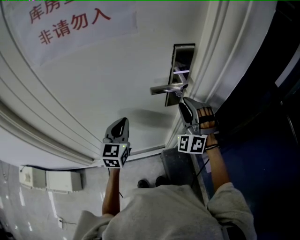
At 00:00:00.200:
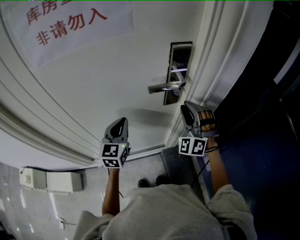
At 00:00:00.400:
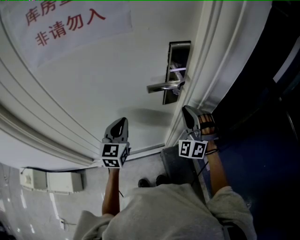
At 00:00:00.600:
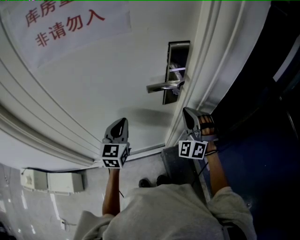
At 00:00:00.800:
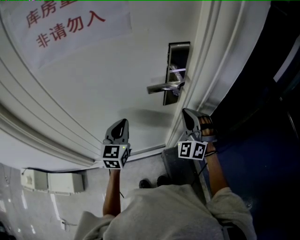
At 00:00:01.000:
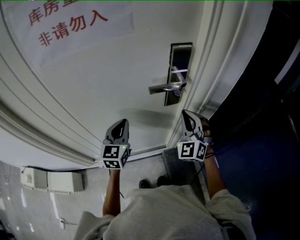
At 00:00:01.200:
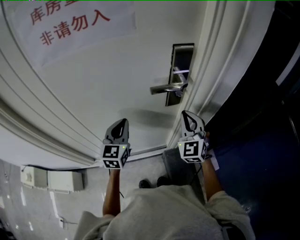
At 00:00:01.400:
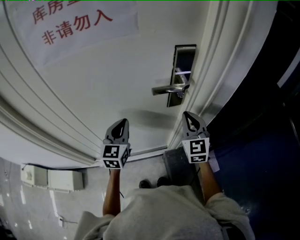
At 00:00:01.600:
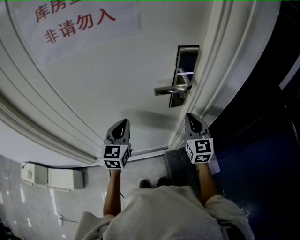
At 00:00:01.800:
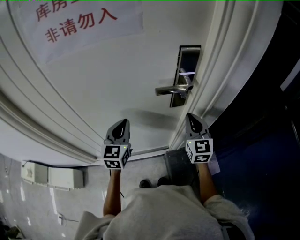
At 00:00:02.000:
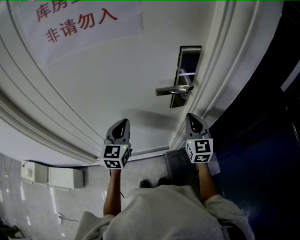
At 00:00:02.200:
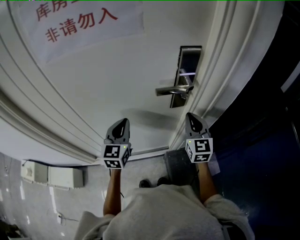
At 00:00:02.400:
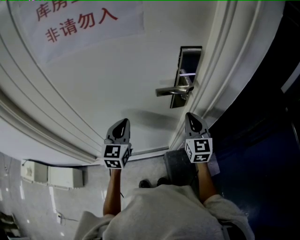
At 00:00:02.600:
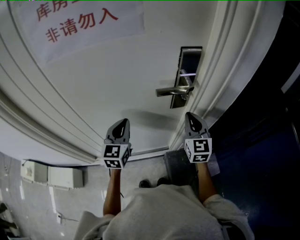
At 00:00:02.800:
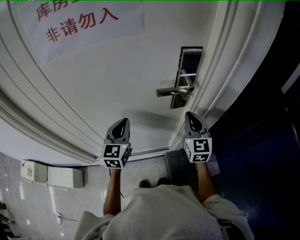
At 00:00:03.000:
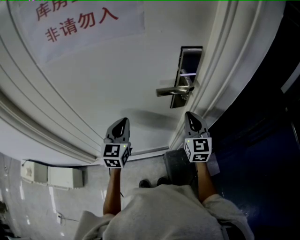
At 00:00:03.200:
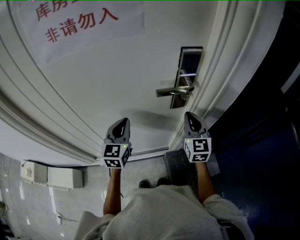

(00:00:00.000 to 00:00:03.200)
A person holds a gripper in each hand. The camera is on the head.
00:00:00.000 - 00:00:01.600: The right gripper twists some 70 degrees clockwise, seen from behind, and closes its fingers.
00:00:01.600 - 00:00:03.200: The grippers move only a little.

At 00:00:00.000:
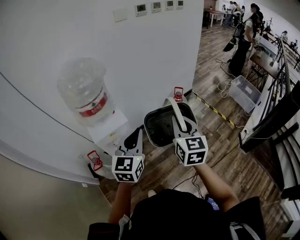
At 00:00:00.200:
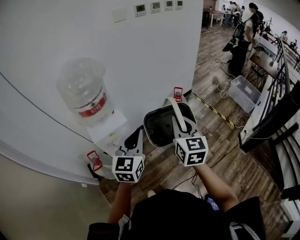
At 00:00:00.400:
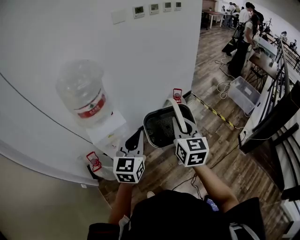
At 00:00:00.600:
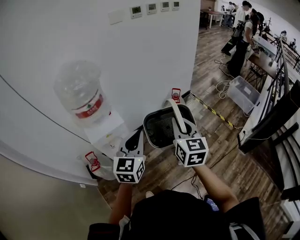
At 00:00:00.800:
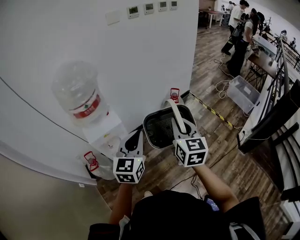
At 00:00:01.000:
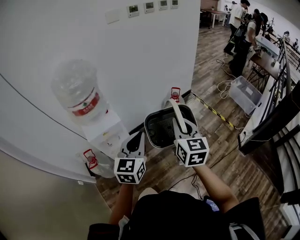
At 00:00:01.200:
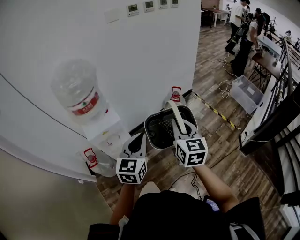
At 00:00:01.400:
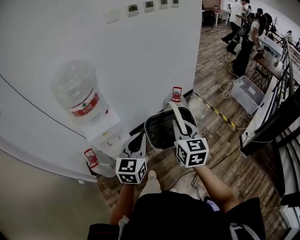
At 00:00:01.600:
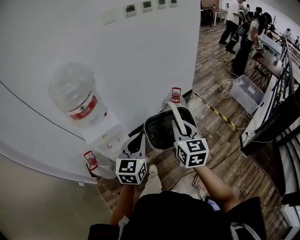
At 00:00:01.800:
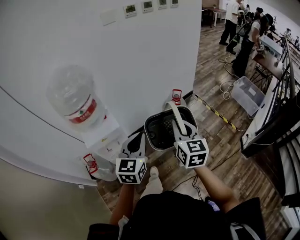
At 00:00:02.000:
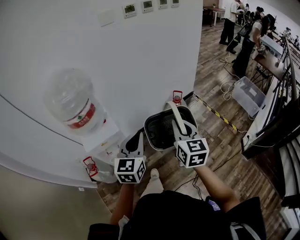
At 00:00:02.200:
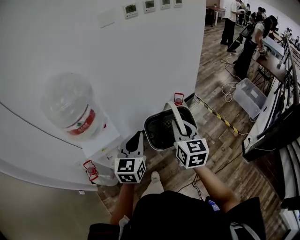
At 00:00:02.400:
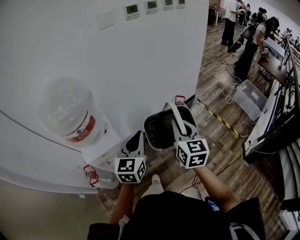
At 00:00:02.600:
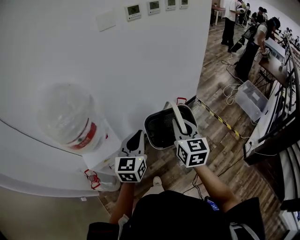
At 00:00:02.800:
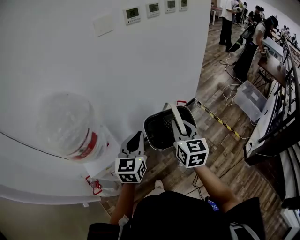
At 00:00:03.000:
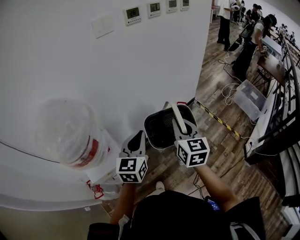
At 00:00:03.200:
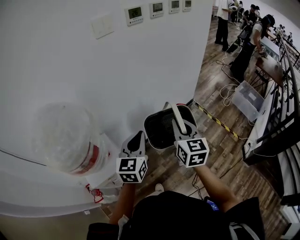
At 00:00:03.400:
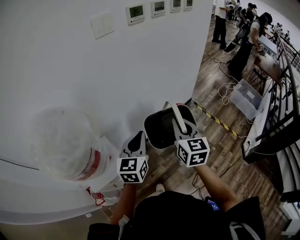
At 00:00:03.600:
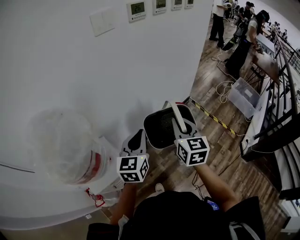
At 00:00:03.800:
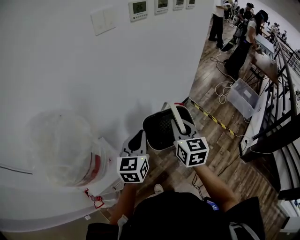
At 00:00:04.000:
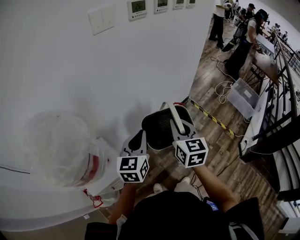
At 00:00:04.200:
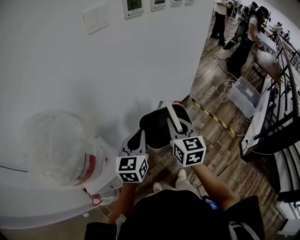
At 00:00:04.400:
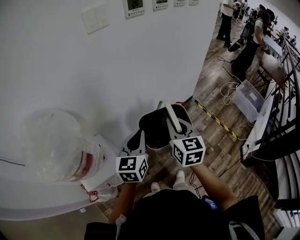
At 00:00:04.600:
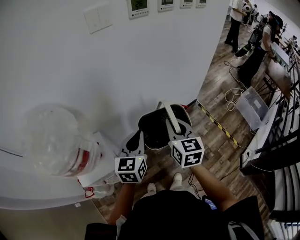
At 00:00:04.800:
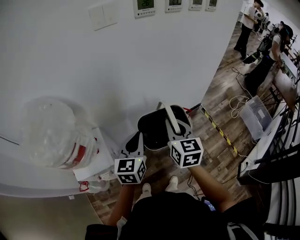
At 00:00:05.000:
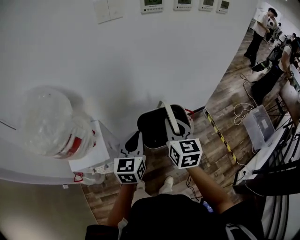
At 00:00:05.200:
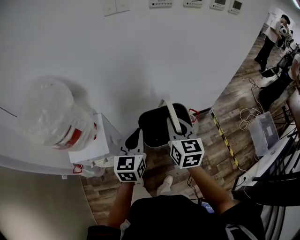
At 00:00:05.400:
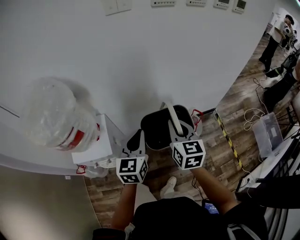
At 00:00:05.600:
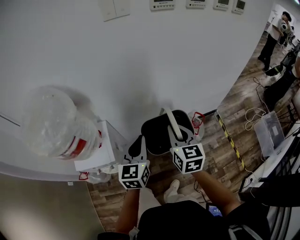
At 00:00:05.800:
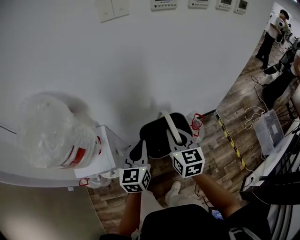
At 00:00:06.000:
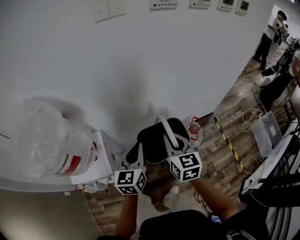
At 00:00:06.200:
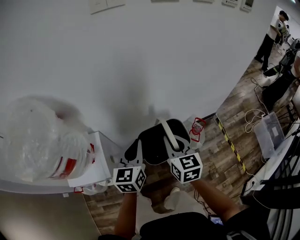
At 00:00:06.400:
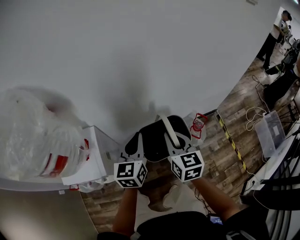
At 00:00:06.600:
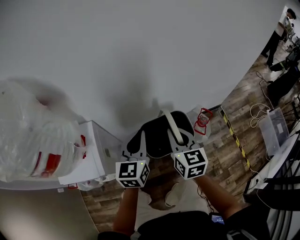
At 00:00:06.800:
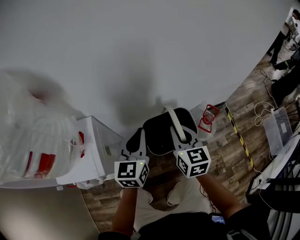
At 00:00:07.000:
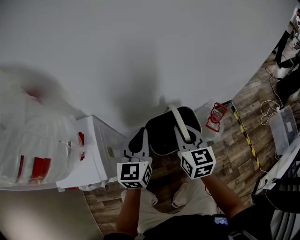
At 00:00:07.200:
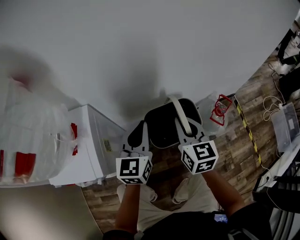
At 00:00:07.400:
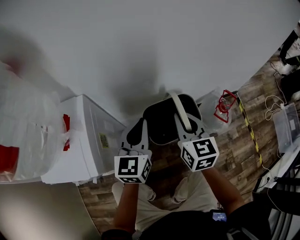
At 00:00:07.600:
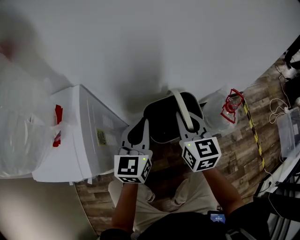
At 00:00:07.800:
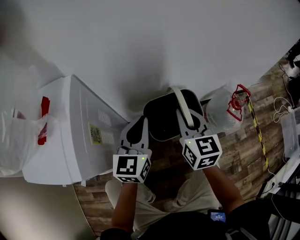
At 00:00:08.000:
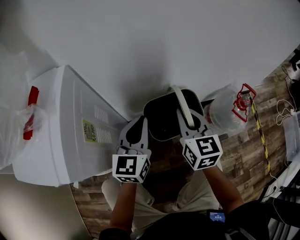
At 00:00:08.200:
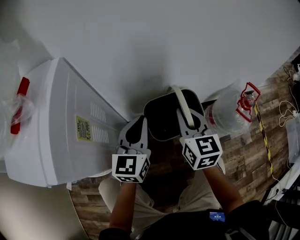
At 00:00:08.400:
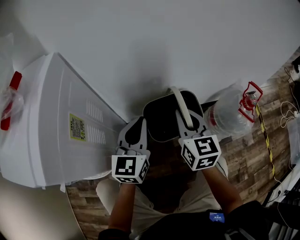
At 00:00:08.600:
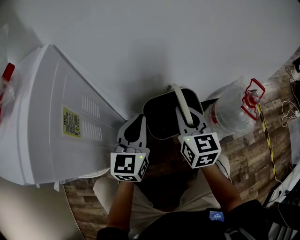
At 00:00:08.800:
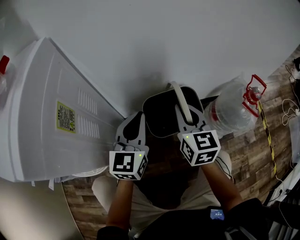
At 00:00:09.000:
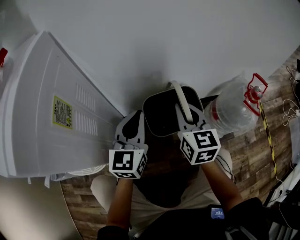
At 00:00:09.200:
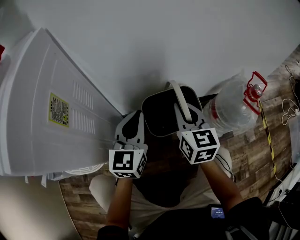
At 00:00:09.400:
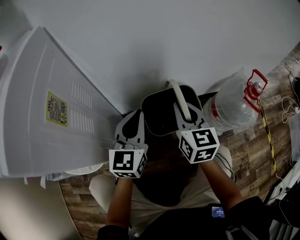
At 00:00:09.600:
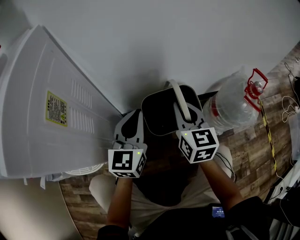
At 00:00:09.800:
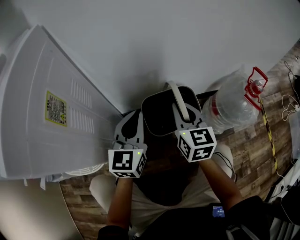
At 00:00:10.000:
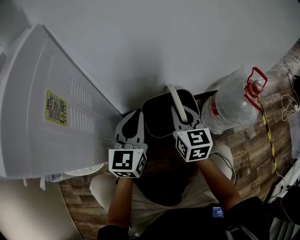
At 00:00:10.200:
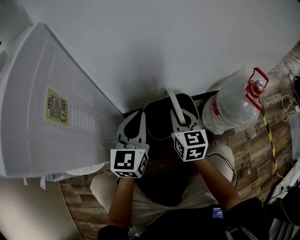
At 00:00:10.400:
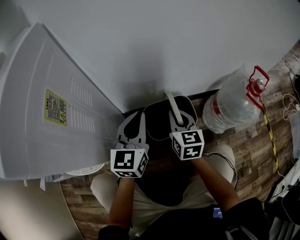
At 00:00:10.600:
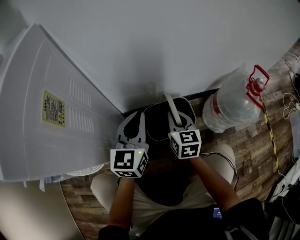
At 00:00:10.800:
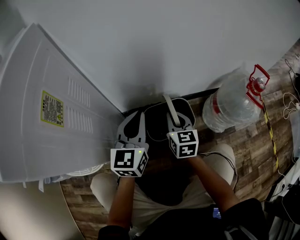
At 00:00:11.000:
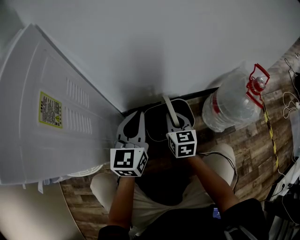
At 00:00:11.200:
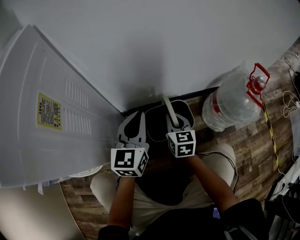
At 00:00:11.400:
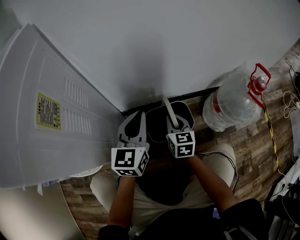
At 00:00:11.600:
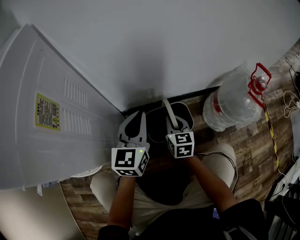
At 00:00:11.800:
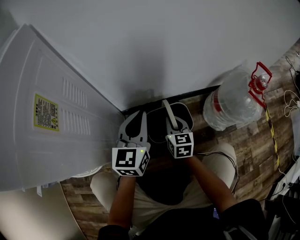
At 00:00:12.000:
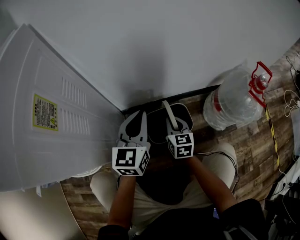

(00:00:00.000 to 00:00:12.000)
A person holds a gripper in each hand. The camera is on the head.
00:00:00.000 - 00:00:01.600: Both grippers move to the right, roughly 10 cm.
00:00:01.600 - 00:00:03.000: Both grippers move forward, approximately 25 cm.
00:00:03.000 - 00:00:04.400: Both grippers travel together forward, roughly 10 cm.
00:00:04.400 - 00:00:06.000: The left gripper travels downward by about 5 cm, and turns by some 20 degrees. The right gripper shifts roughly 10 cm downward and forward, and rotates about 20 degrees.
00:00:06.000 - 00:00:07.600: The grippers both shift downward by about 30 cm.
00:00:07.600 - 00:00:09.000: The two grippers go roughly 20 cm downward.
00:00:09.000 - 00:00:10.400: The right gripper is displaced downward by about 10 cm.
00:00:10.400 - 00:00:12.000: The right gripper heads downward, covering approximately 10 cm.

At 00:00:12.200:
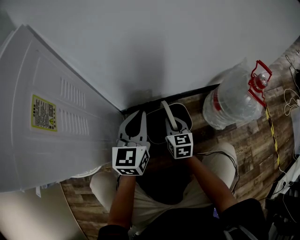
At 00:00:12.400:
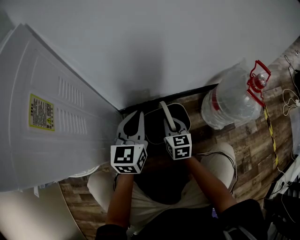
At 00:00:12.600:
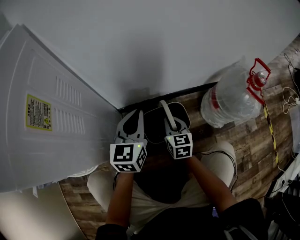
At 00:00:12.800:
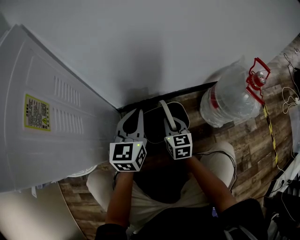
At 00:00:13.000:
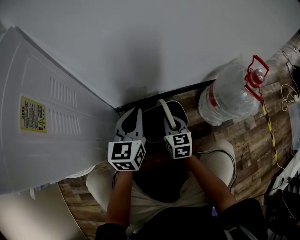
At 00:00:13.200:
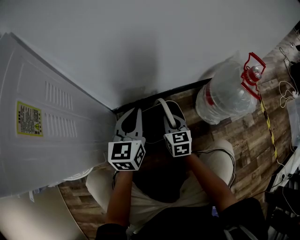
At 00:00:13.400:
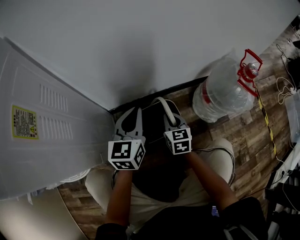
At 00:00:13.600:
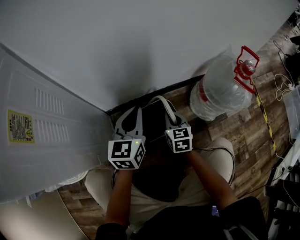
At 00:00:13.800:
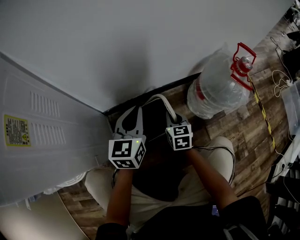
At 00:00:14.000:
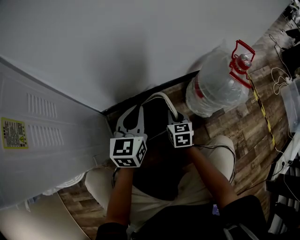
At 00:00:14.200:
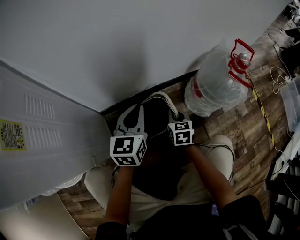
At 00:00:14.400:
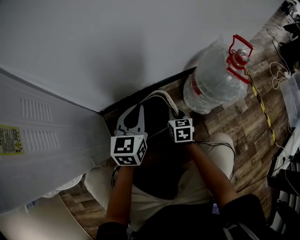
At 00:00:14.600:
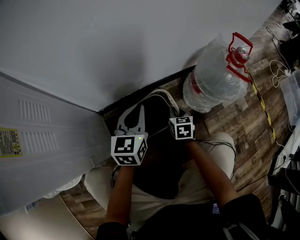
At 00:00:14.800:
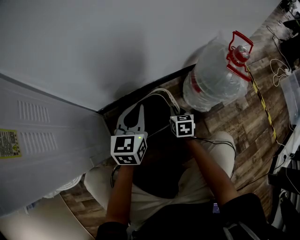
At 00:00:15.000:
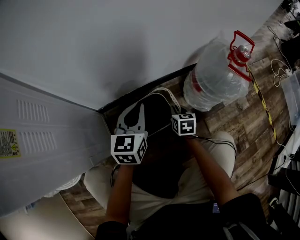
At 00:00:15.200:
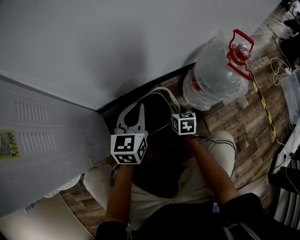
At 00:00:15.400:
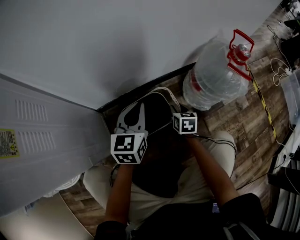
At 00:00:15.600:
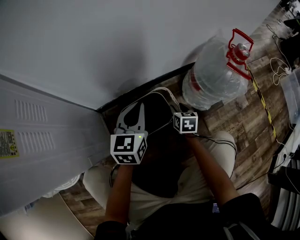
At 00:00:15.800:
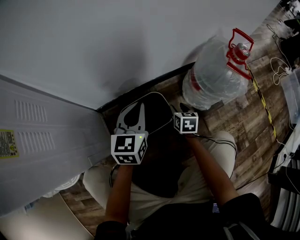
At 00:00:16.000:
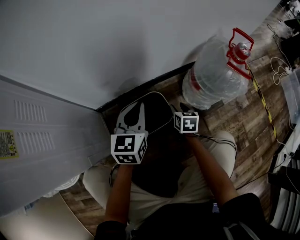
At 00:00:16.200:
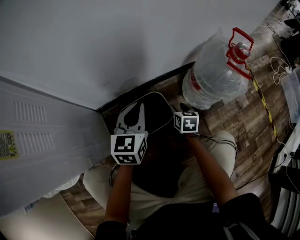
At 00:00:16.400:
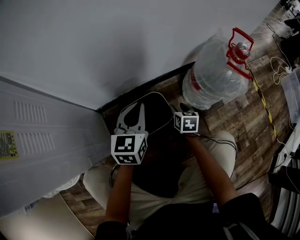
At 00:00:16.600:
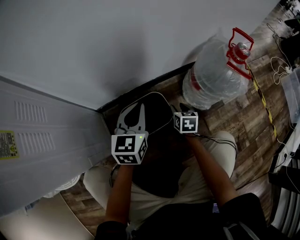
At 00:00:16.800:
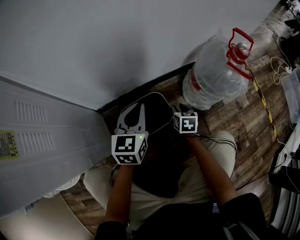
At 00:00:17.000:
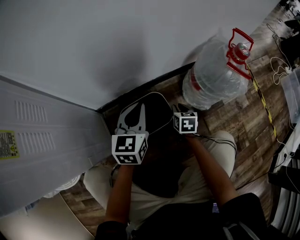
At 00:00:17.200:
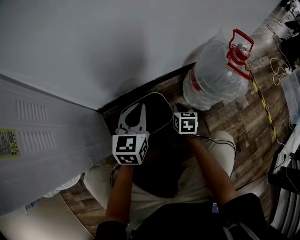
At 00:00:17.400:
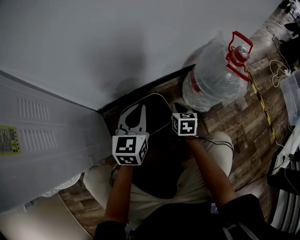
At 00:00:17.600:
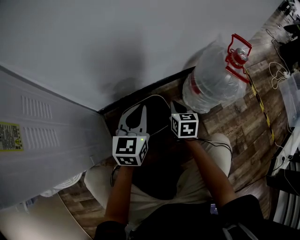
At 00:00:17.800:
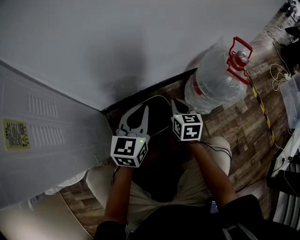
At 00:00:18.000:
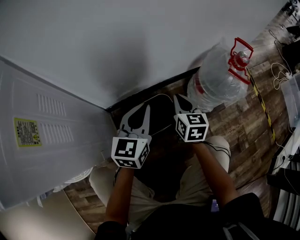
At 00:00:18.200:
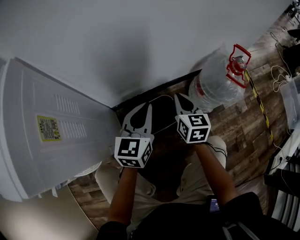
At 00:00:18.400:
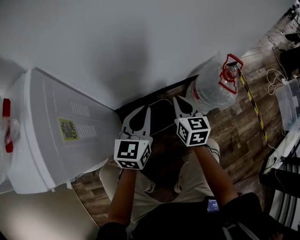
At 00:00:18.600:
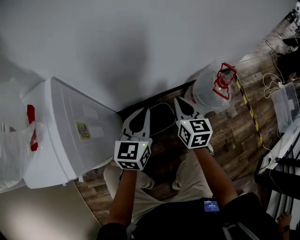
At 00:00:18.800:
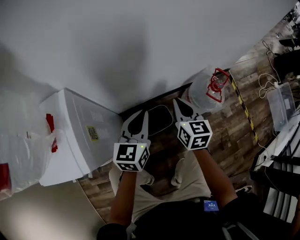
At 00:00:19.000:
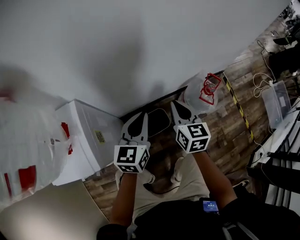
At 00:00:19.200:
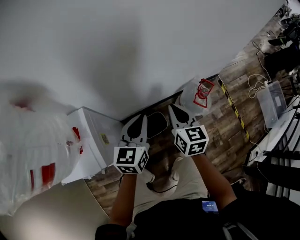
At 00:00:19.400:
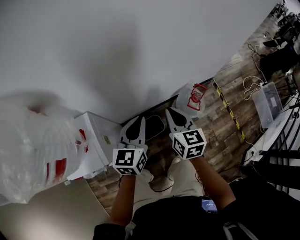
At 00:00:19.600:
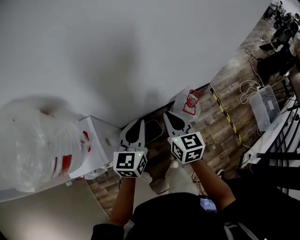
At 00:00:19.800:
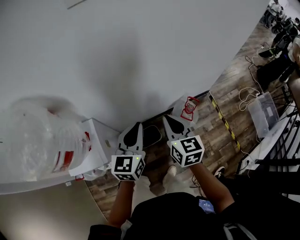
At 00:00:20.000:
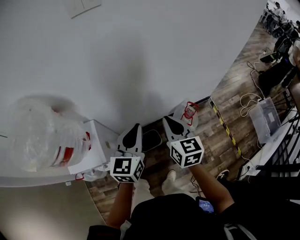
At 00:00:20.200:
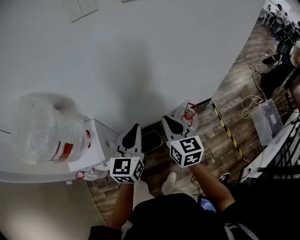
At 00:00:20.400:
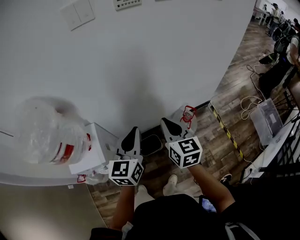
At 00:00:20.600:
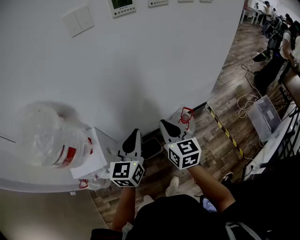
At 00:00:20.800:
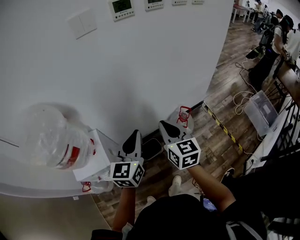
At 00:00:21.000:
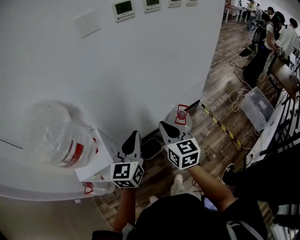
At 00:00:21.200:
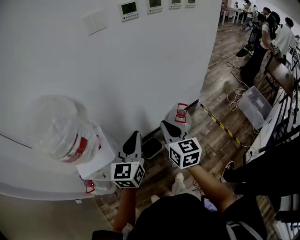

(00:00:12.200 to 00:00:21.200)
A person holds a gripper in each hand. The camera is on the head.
00:00:12.200 - 00:00:13.800: Both grippers travel together to the right, some 10 cm.
00:00:13.800 - 00:00:15.200: The left gripper changes place by roughly 5 cm. The right gripper travels downward and to the right by approximately 10 cm.
00:00:15.200 - 00:00:16.600: The right gripper opens up.
00:00:16.600 - 00:00:18.200: The left gripper travels upward by about 15 cm. The right gripper heads upward, covering roughly 25 cm, swivels approximately 20 degrees, and closes.
00:00:18.200 - 00:00:19.800: The two grippers go some 50 cm upward.
00:00:19.800 - 00:00:21.200: Both grippers travel together backward and upward, approximately 15 cm.
